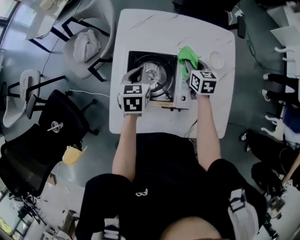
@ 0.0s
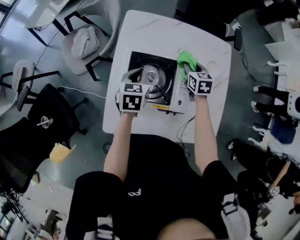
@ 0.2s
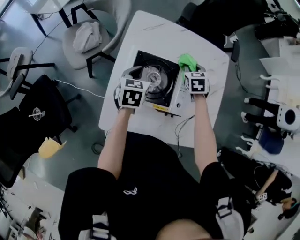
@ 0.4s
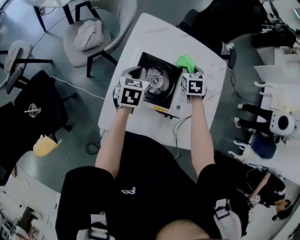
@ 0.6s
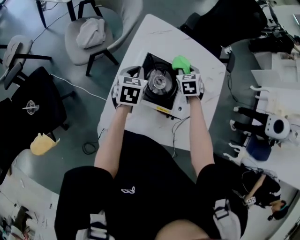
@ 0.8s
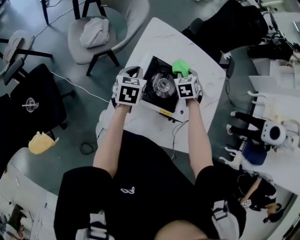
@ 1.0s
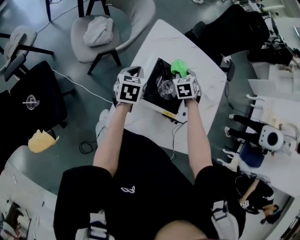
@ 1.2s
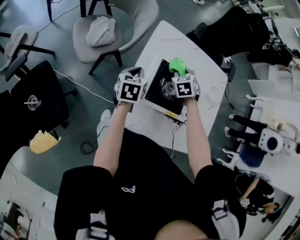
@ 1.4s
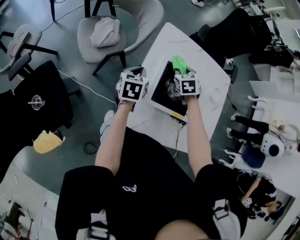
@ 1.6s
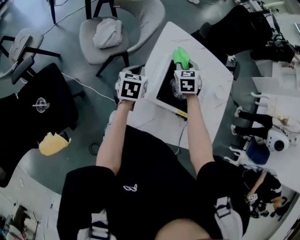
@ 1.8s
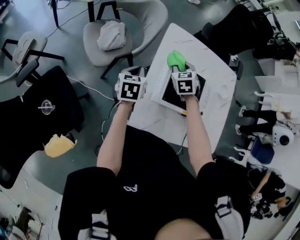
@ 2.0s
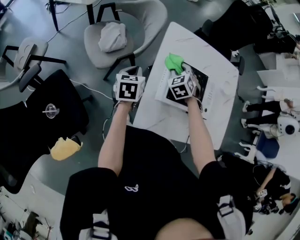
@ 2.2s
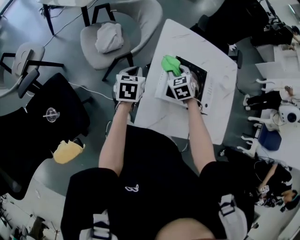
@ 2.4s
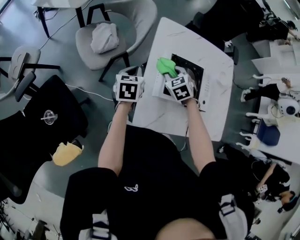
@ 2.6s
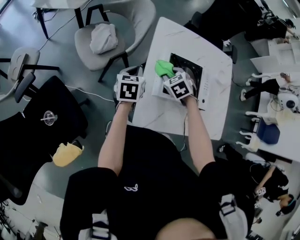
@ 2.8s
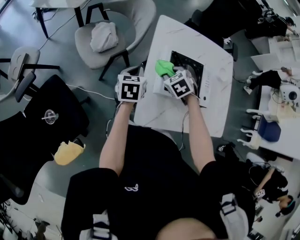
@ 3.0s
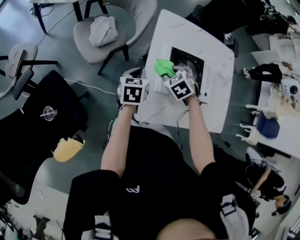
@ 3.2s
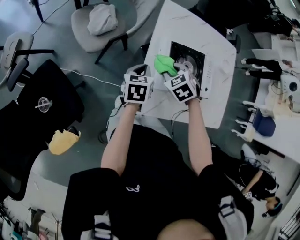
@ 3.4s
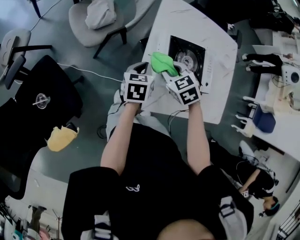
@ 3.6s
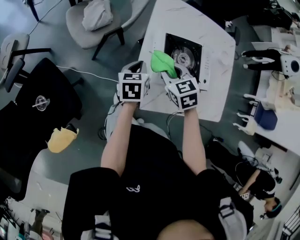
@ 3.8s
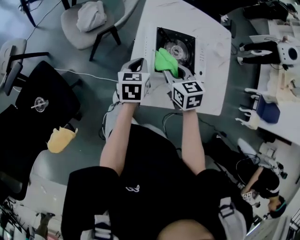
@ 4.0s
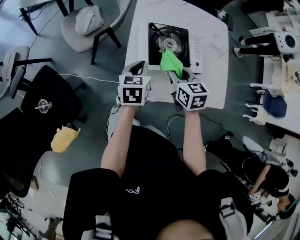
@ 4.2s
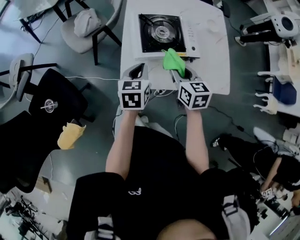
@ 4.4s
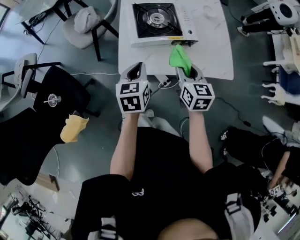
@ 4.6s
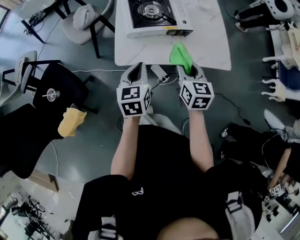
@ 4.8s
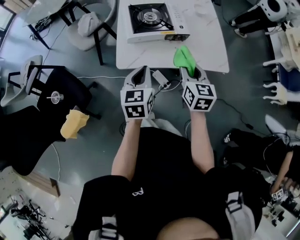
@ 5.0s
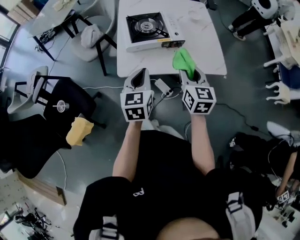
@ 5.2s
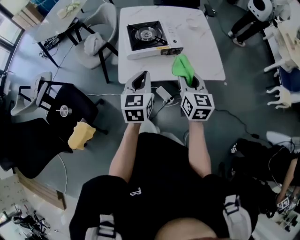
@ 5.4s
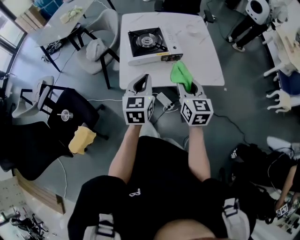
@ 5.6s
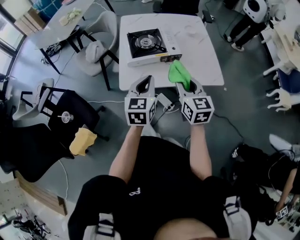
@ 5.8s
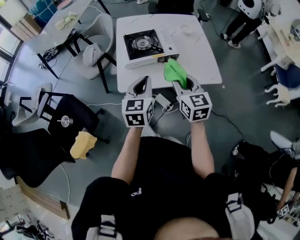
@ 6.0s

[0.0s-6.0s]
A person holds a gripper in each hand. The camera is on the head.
0.0s to 1.6s: The grippers both shift to the left by approximately 20 cm. The right gripper rotates about 40 degrees.
1.6s to 3.0s: The right gripper shifts about 15 cm backward and to the left; the left gripper ends up about 5 cm from where it was.
3.0s to 4.4s: The grippers both shift backward and to the right by approximately 25 cm. The right gripper swivels roughly 50 degrees.
4.4s to 6.0s: Both grippers move backward, upward and to the right, roughly 20 cm. The right gripper changes its angle by some 20 degrees, while the left gripper rotates roughly 20 degrees.

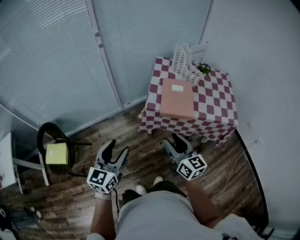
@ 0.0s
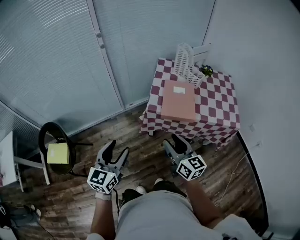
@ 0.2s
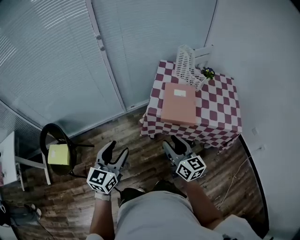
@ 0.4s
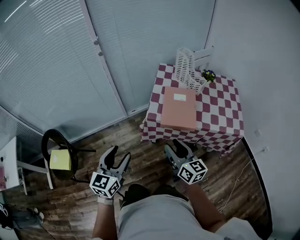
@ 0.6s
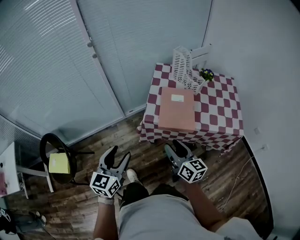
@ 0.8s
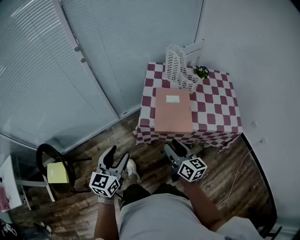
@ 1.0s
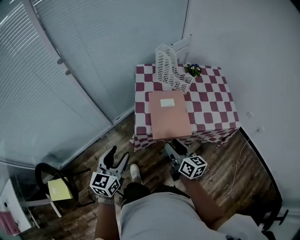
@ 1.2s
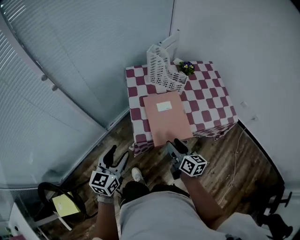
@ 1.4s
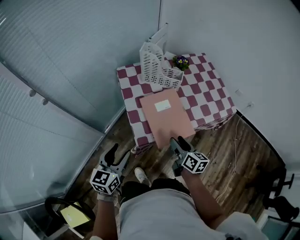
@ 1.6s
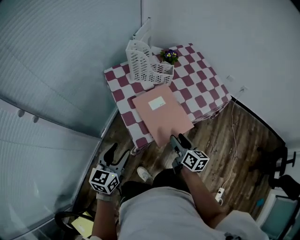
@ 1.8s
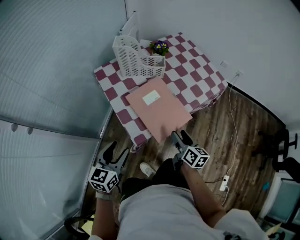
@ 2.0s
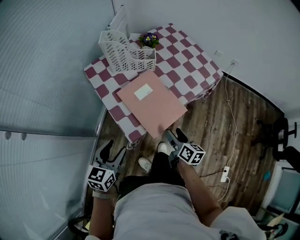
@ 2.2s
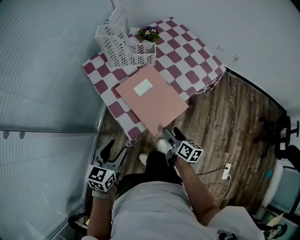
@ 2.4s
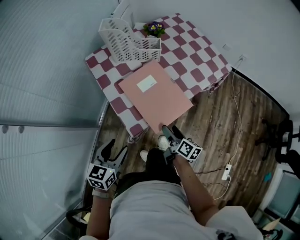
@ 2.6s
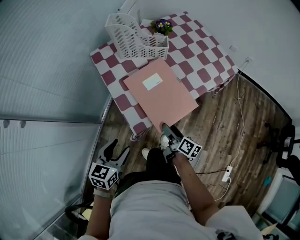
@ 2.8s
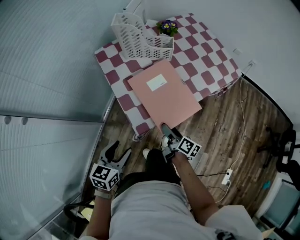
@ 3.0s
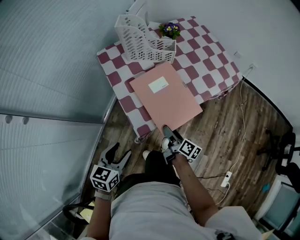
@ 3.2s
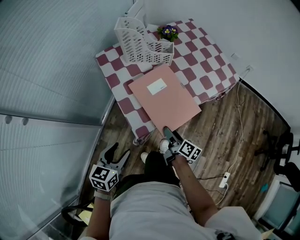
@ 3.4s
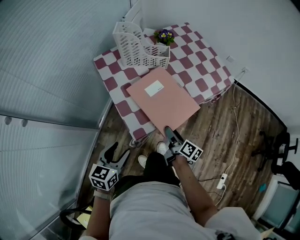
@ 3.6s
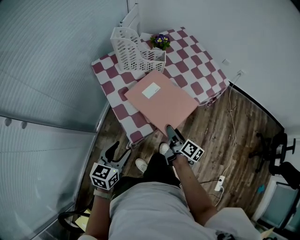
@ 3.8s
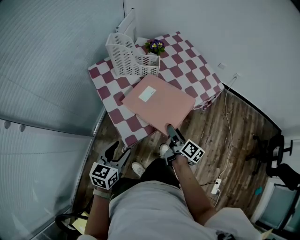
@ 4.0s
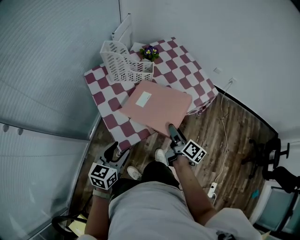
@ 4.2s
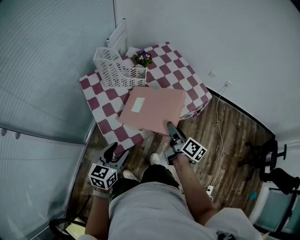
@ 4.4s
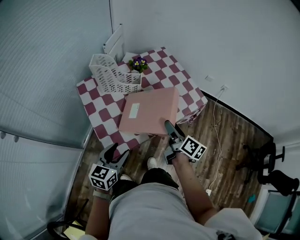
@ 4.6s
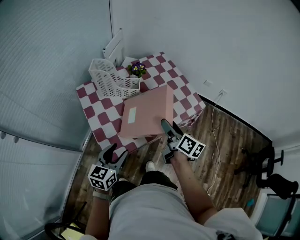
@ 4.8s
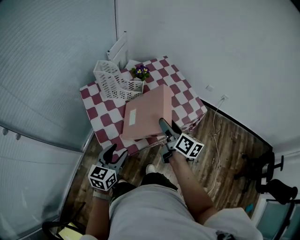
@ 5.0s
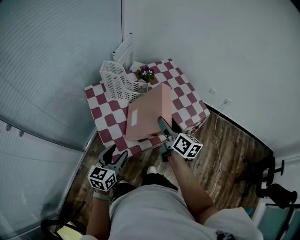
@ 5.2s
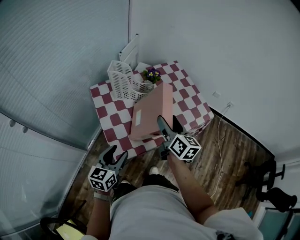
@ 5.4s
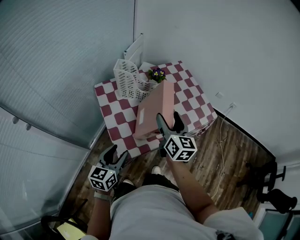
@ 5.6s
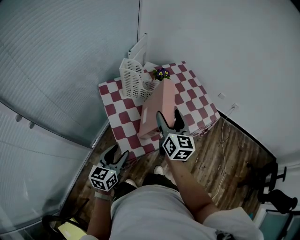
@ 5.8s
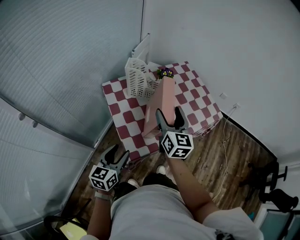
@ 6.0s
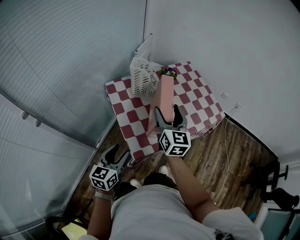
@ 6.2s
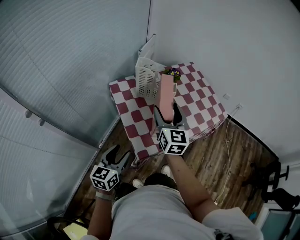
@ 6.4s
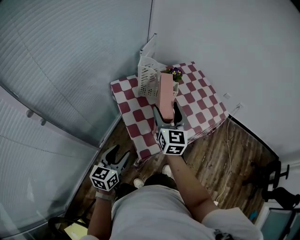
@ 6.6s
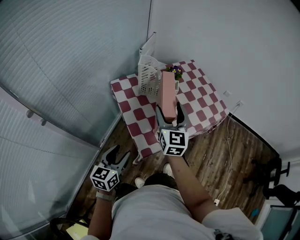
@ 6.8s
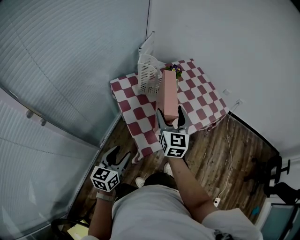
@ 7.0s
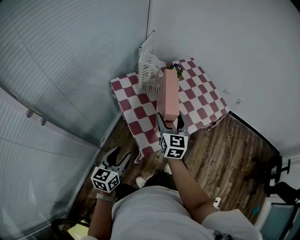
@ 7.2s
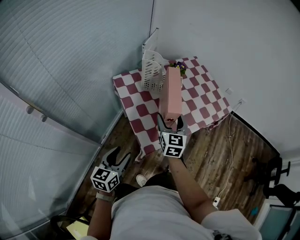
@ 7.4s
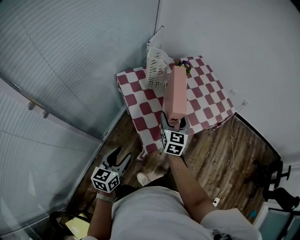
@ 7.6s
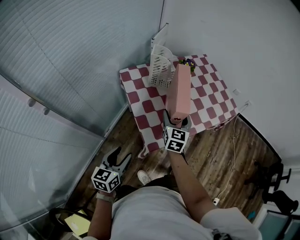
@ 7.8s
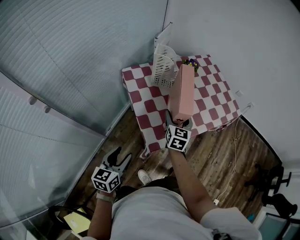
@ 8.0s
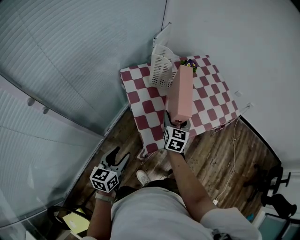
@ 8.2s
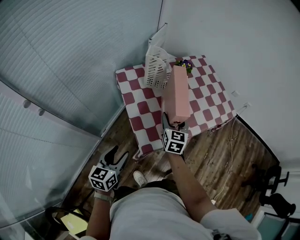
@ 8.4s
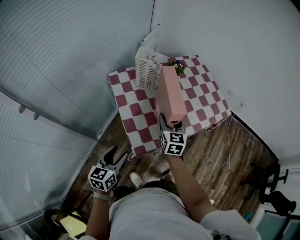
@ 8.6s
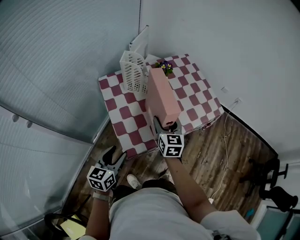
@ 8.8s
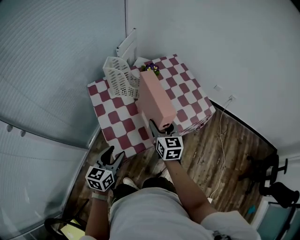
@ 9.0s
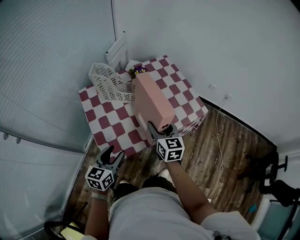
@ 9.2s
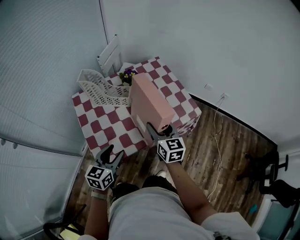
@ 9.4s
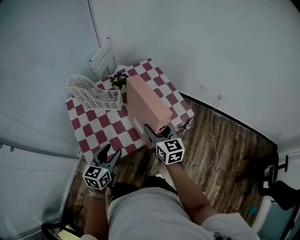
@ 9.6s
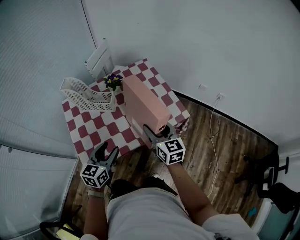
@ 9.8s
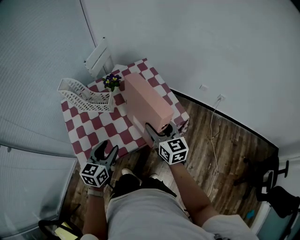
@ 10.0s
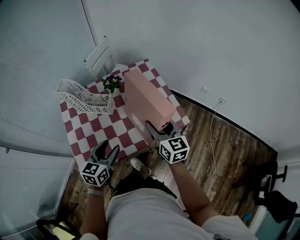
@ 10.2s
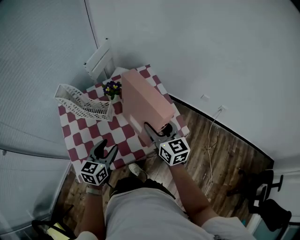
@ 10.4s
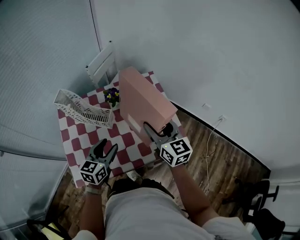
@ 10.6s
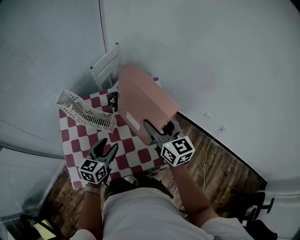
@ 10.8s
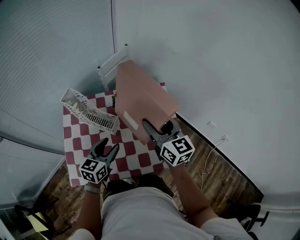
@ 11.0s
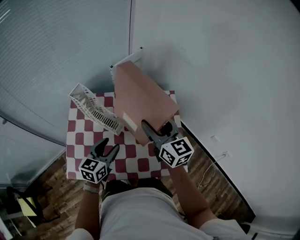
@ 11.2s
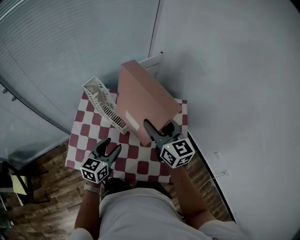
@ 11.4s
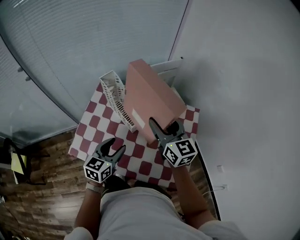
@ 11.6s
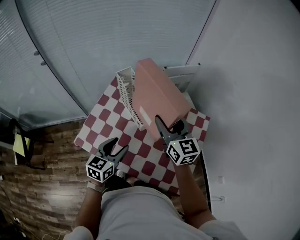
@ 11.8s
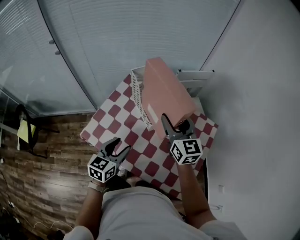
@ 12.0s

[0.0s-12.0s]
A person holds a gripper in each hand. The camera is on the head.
0.0s to 1.6s: The left gripper changes place by some 35 cm, and changes its angle by roughly 30 degrees, while the right gripper ends up about 30 cm from where it was, and changes its angle by approximately 50 degrees.
1.6s to 3.0s: The two grippers go about 15 cm downward. The right gripper swivels approximately 30 degrees, and opens. The left gripper swivels roughly 20 degrees.
3.0s to 4.4s: The left gripper moves to the right, forward and upward, some 15 cm. The right gripper shifts about 25 cm upward, to the right and forward.
4.4s to 6.0s: The right gripper goes approximately 20 cm to the left and upward, and rolls counterclockwise, seen from behind, by roughly 50 degrees. The left gripper moves to the left, roughly 10 cm.
6.0s to 7.6s: The right gripper goes about 10 cm downward and to the left; the left gripper shifts about 10 cm to the left and backward.
7.6s to 9.0s: The right gripper travels to the right by approximately 10 cm. Meanwhile the left gripper is displaced to the right and forward by about 15 cm.
9.0s to 10.4s: Both grippers move to the right and forward, approximately 25 cm.
10.4s to 12.0s: The right gripper moves roughly 25 cm, and changes its angle by approximately 50 degrees; the left gripper turns by approximately 50 degrees.

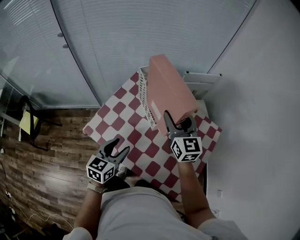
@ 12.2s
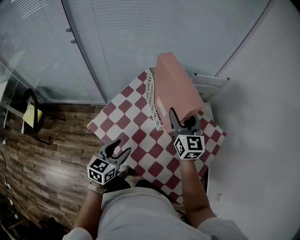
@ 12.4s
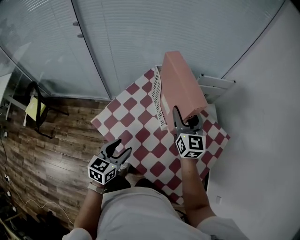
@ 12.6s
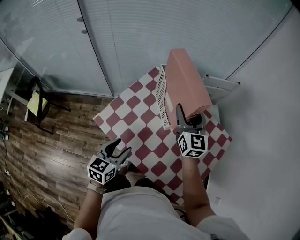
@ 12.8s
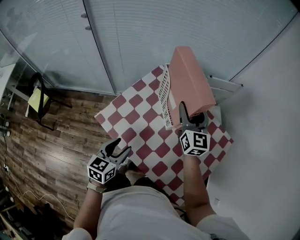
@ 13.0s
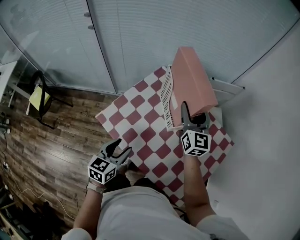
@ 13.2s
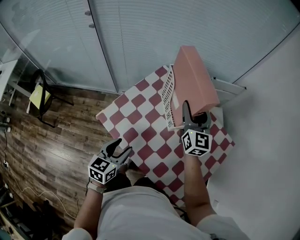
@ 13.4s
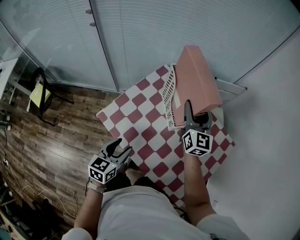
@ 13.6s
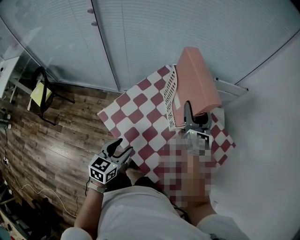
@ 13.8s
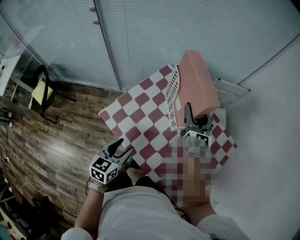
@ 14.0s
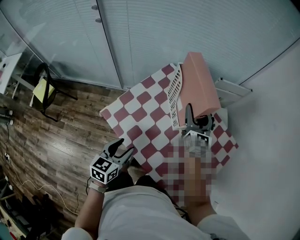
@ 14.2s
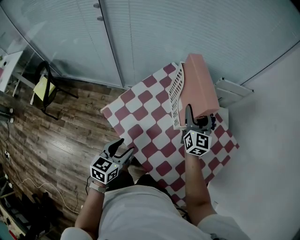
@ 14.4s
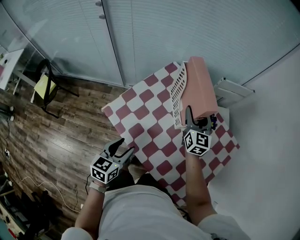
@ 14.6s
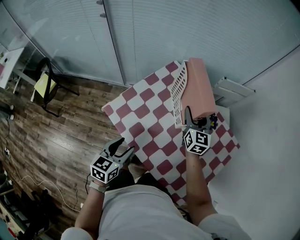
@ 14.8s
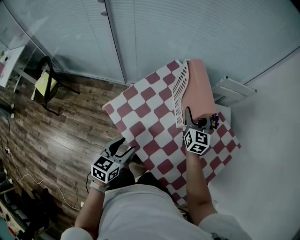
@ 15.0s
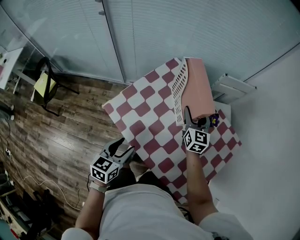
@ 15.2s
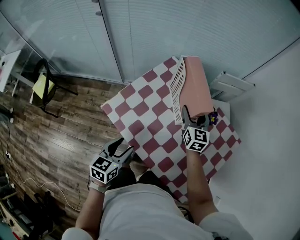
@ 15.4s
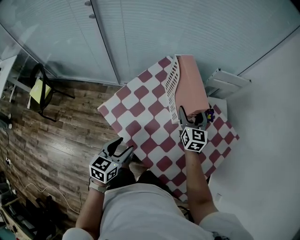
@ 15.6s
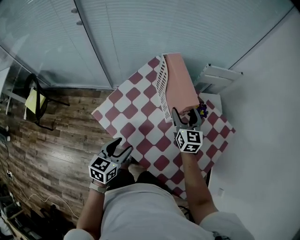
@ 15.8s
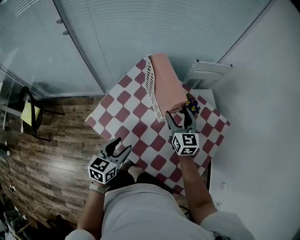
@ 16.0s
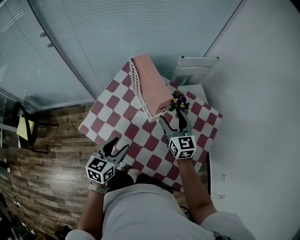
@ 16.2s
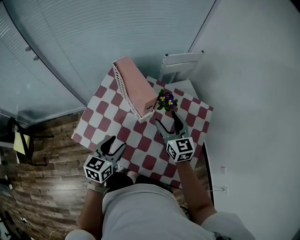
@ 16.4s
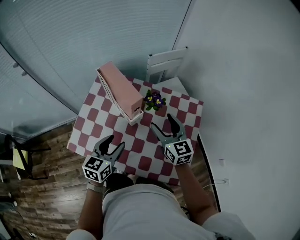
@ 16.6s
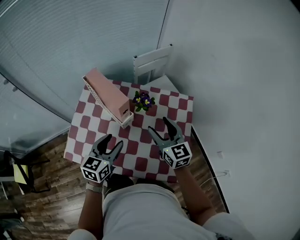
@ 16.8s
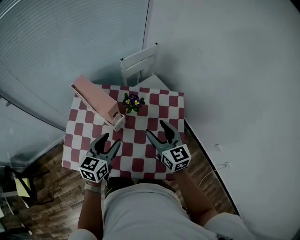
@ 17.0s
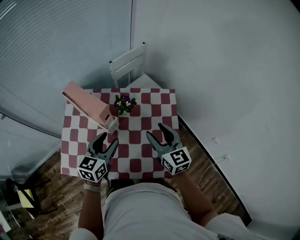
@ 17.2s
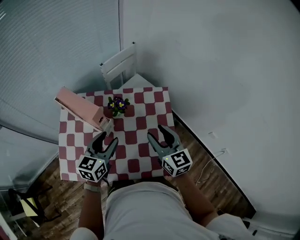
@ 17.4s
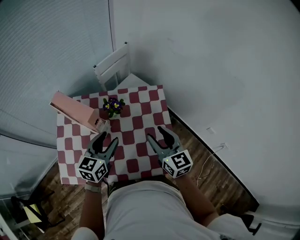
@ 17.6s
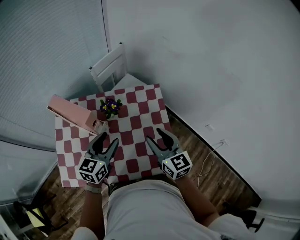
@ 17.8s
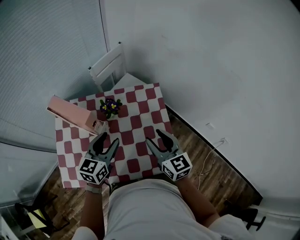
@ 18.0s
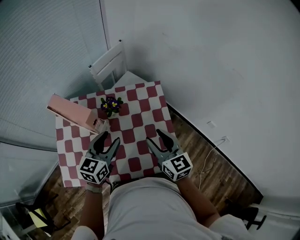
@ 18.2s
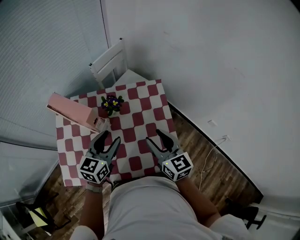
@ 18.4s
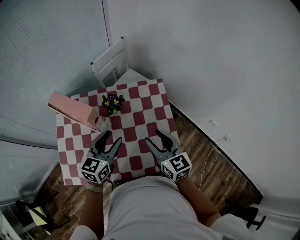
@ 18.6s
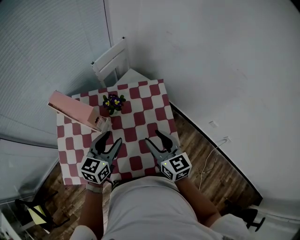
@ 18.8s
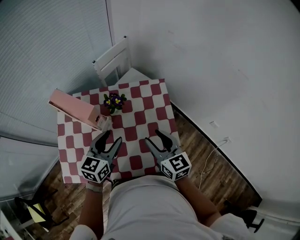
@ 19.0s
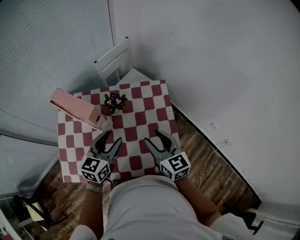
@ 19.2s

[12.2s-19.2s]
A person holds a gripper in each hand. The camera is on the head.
12.2s to 13.6s: The right gripper goes about 5 cm forward. Meanwhile the left gripper is displaced to the left by approximately 5 cm.
13.6s to 15.0s: The right gripper heads downward, covering about 10 cm.
15.0s to 16.4s: The right gripper goes some 15 cm backward and to the right; the left gripper shifts roughly 10 cm to the right and forward, and turns by approximately 20 degrees.
16.4s to 17.8s: The right gripper changes place by some 20 cm, and rotates roughly 30 degrees. Meanwhile the left gripper ends up roughly 15 cm from where it was, and turns by some 30 degrees.
17.8s to 19.2s: The grippers stay close to where they were, moving slightly.
